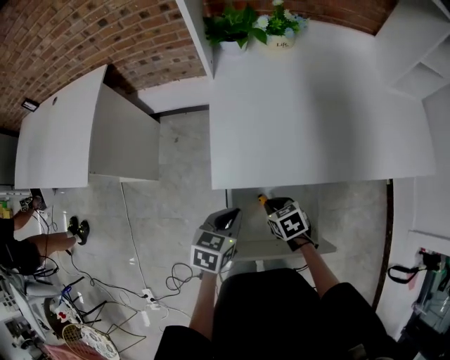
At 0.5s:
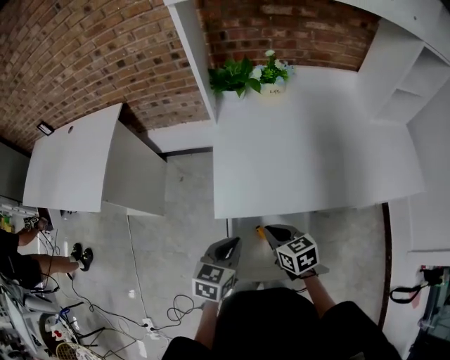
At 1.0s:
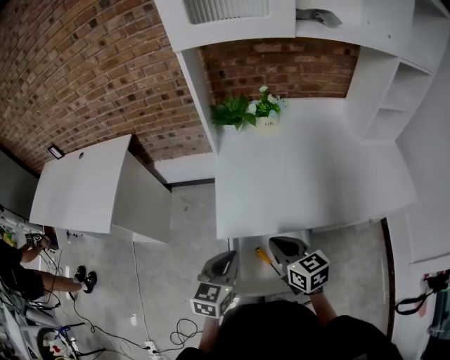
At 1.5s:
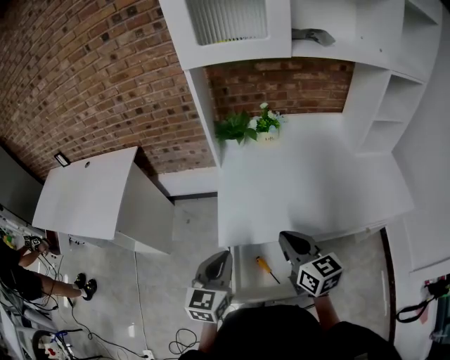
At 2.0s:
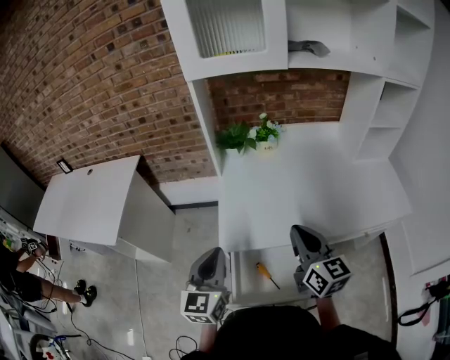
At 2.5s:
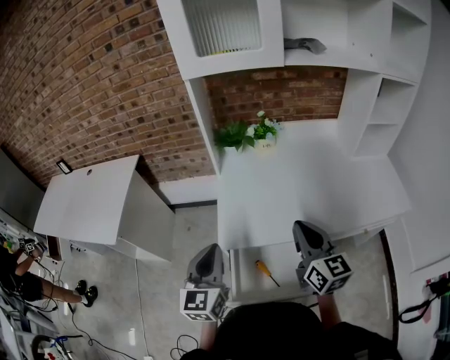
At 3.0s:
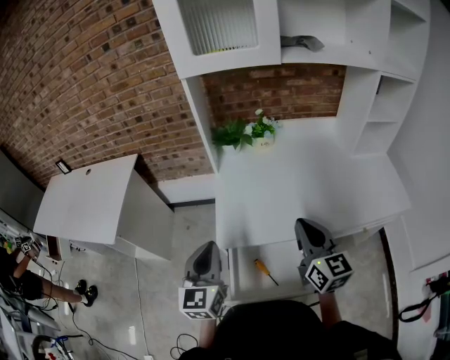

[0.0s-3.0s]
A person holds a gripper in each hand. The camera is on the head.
0.0s to 1.5s: The left gripper travels upward by some 20 cm, and swivels about 30 degrees. Meanwhile the right gripper is displaced upward by approximately 35 cm, and tips its fingers upward by some 50 degrees.
1.5s to 3.0s: The right gripper moves to the right and upward, about 10 cm. Meanwhile the left gripper travels upward by some 5 cm.

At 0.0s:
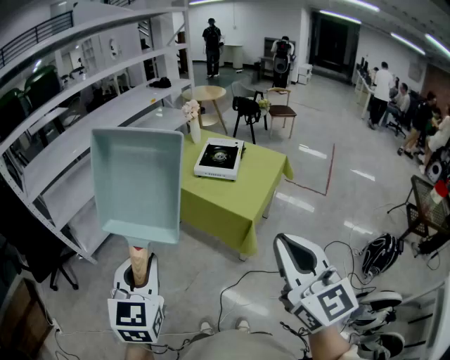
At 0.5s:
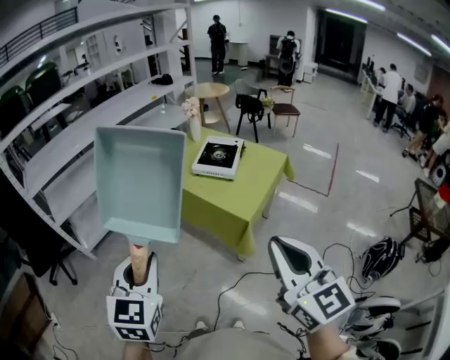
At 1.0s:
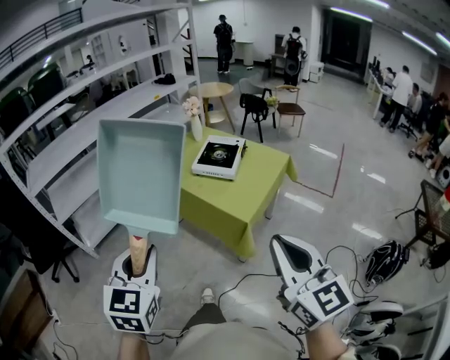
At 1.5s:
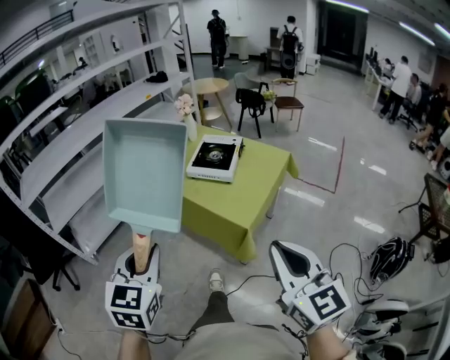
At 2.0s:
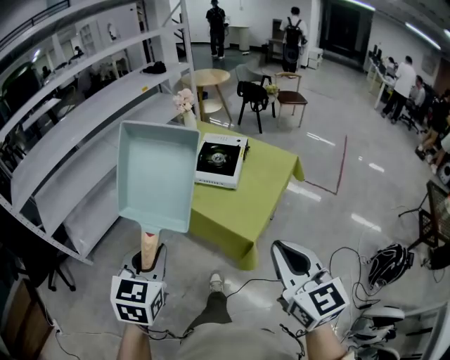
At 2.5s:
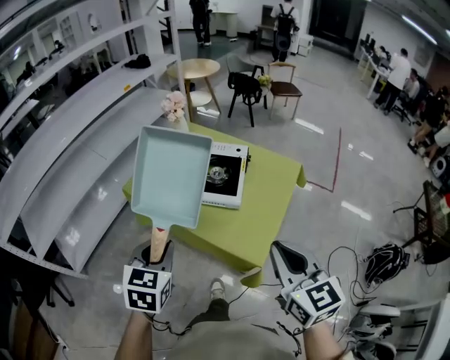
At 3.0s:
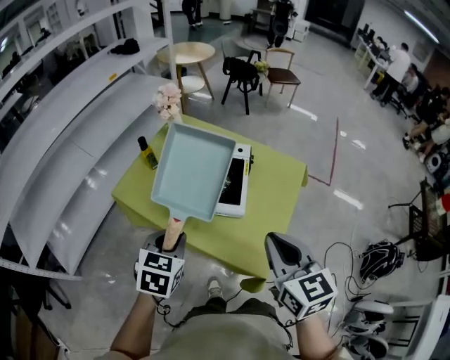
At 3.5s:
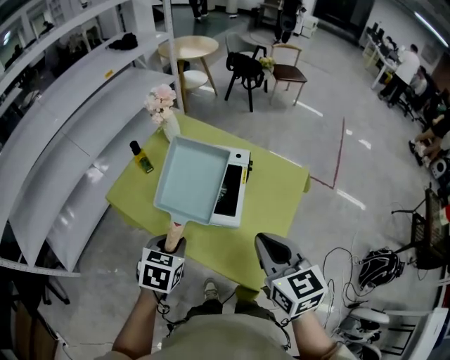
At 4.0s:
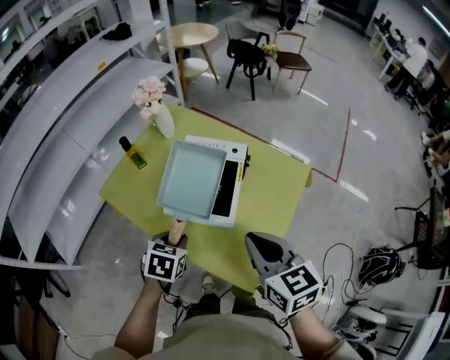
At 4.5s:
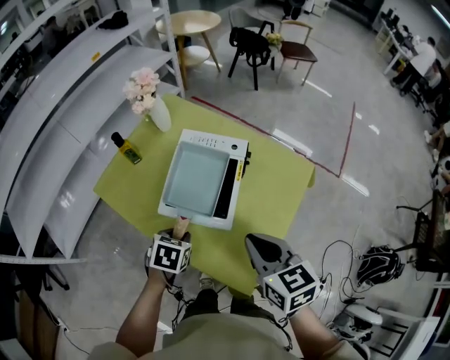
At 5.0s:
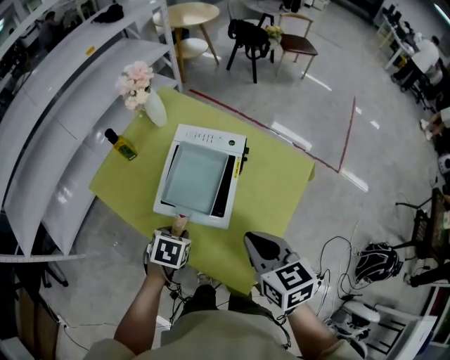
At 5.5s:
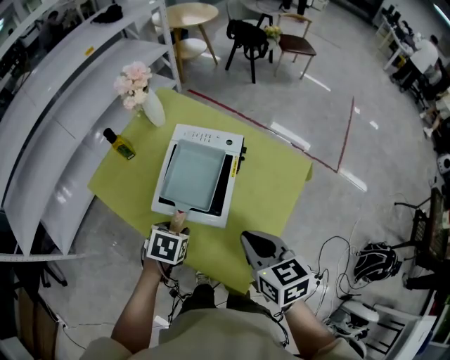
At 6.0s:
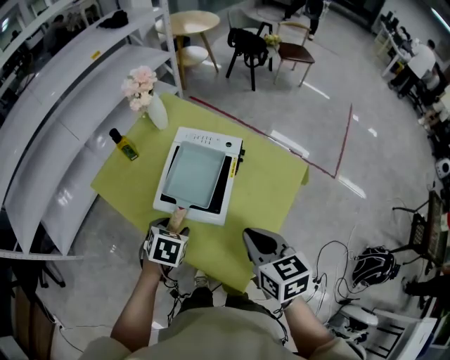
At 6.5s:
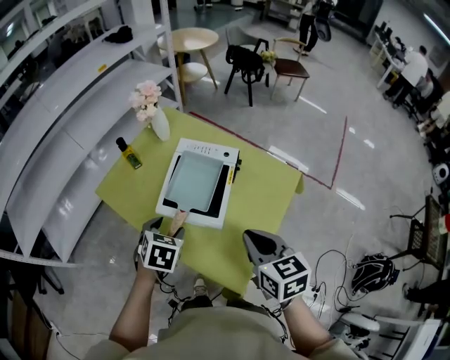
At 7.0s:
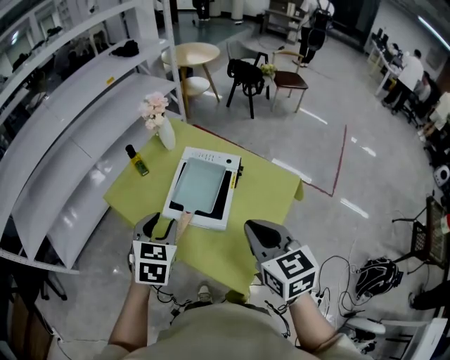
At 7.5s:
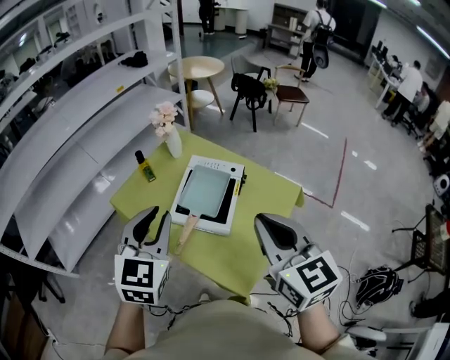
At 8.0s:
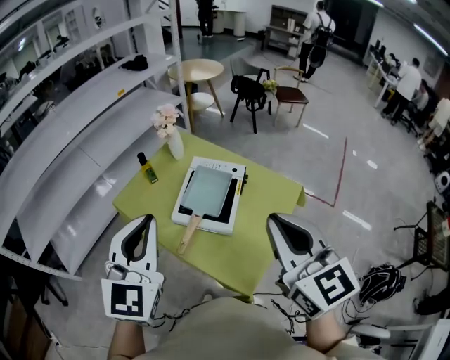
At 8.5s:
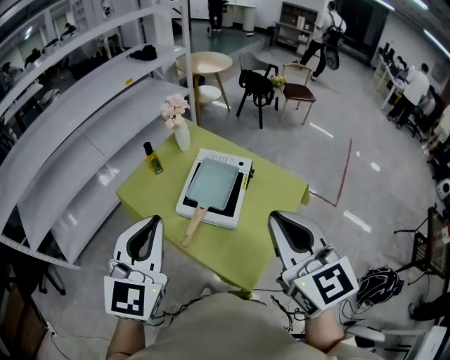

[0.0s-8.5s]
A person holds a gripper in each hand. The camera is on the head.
0.0s to 2.0s: The left gripper goes some 25 cm forward, to the right and downward; the right gripper goes roughly 25 cm forward, downward and to the right.
2.0s to 4.0s: The left gripper travels forward and downward by roughly 40 cm, and tips its fingers downward by approximately 30 degrees; the right gripper heads forward, covering some 35 cm, and swivels roughly 20 degrees.
4.0s to 6.5s: The left gripper travels downward and back again, some 5 cm each way, and opens up.
6.5s to 8.5s: The two grippers go roughly 25 cm upward. The right gripper swivels some 30 degrees. Meanwhile the left gripper tilts its fingers about 50 degrees upward, and closes its fingers.

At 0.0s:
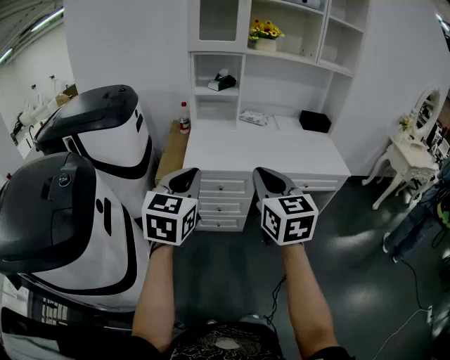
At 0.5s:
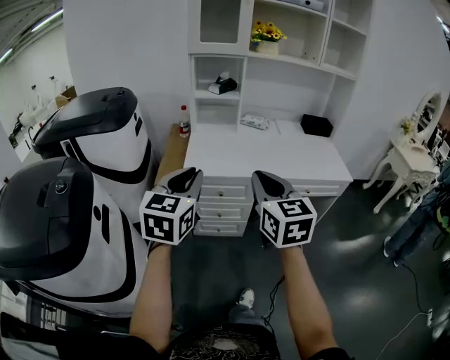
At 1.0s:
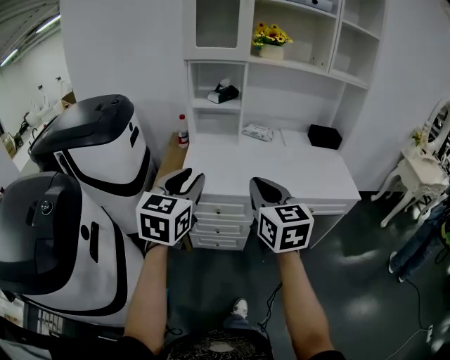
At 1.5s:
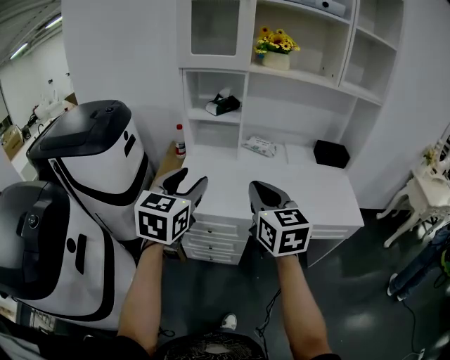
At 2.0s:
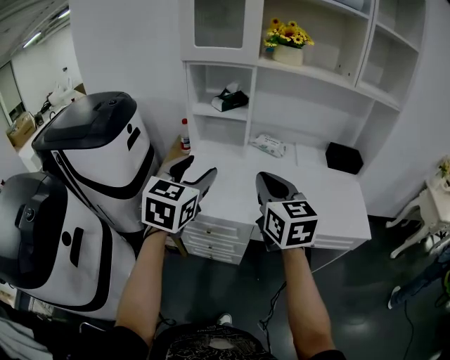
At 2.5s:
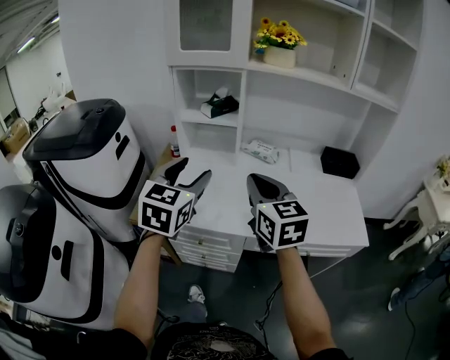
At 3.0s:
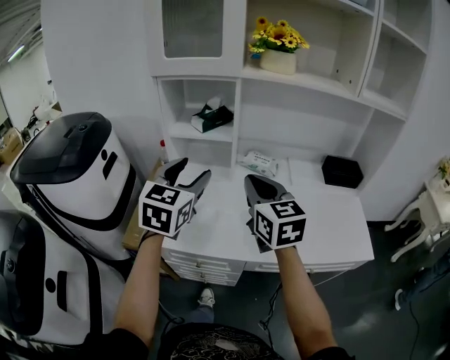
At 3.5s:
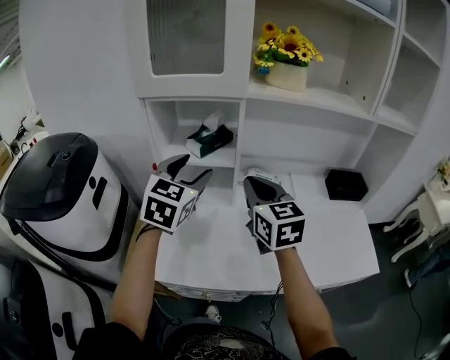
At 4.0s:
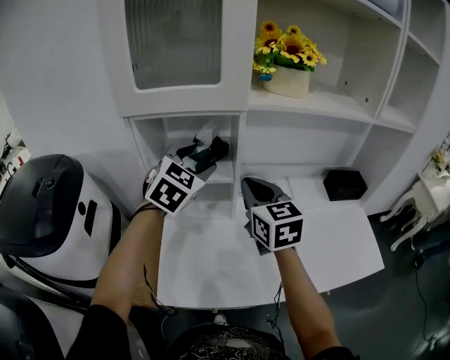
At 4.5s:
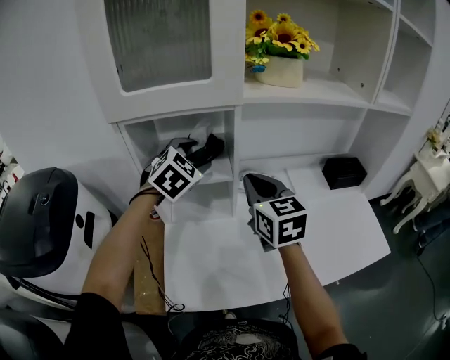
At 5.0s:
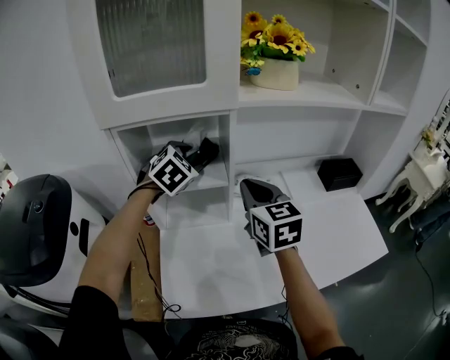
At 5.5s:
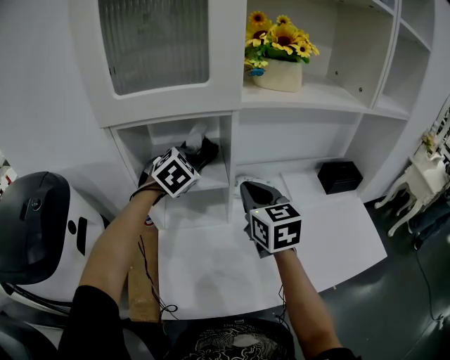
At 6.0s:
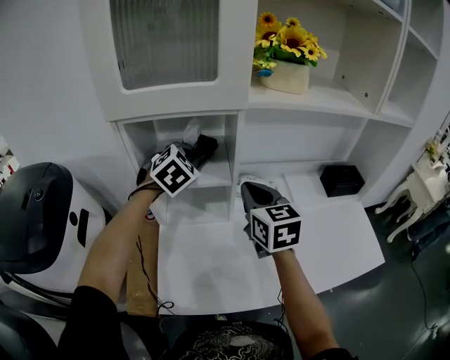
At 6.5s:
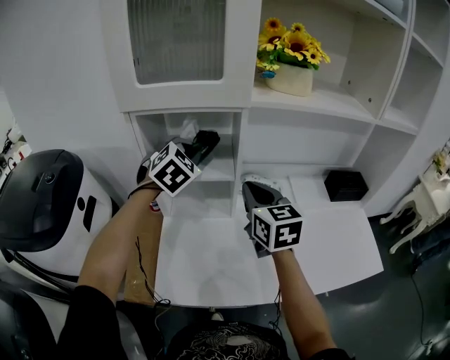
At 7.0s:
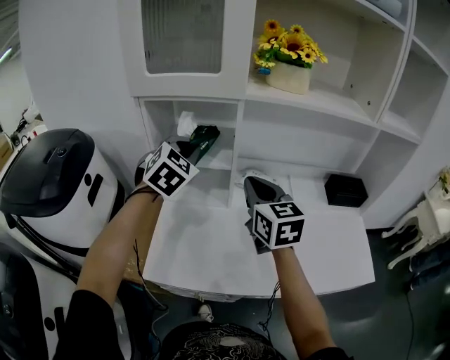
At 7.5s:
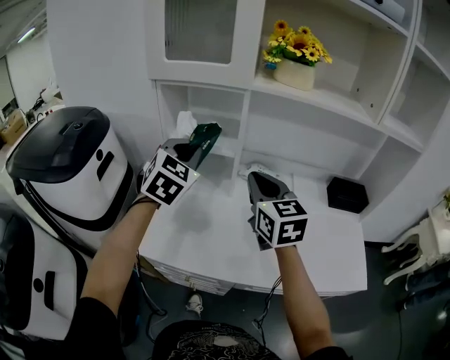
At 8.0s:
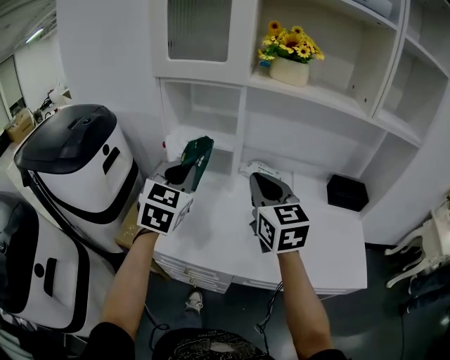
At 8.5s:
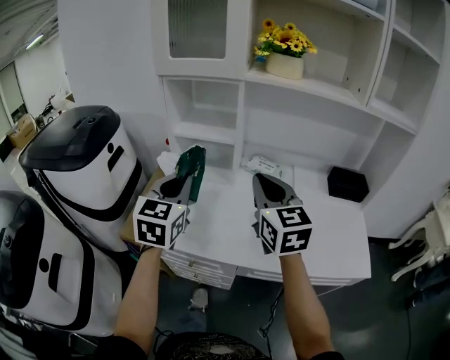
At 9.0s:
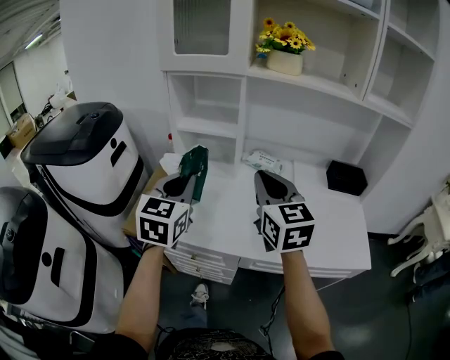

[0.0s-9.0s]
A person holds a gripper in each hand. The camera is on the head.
0.0s to 2.0s: The two grippers go some 30 cm forward. The left gripper opens its fingers.
2.0s to 4.5s: The two grippers go some 40 cm forward. The left gripper rotates about 40 degrees.
4.5s to 7.0s: The right gripper moves about 5 cm, while the left gripper goes some 5 cm backward, and closes up.
7.0s to 9.0s: The right gripper is displaced backward by roughly 15 cm; the left gripper heads backward, covering about 25 cm, and rotates about 40 degrees.

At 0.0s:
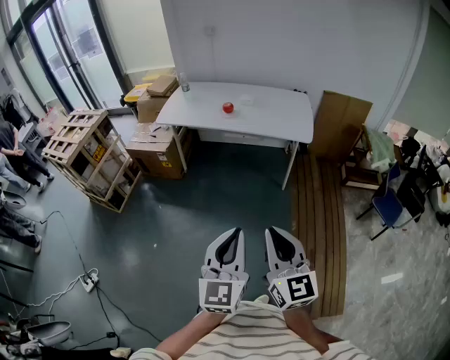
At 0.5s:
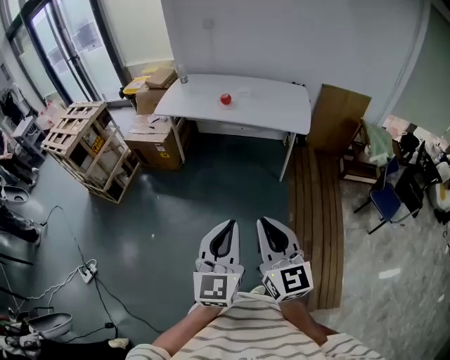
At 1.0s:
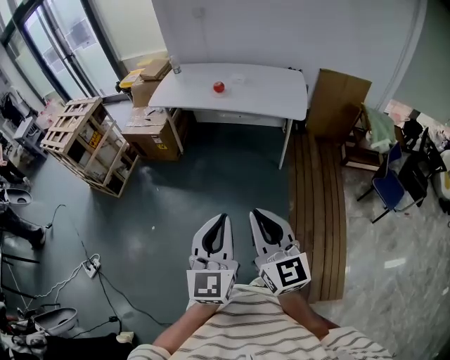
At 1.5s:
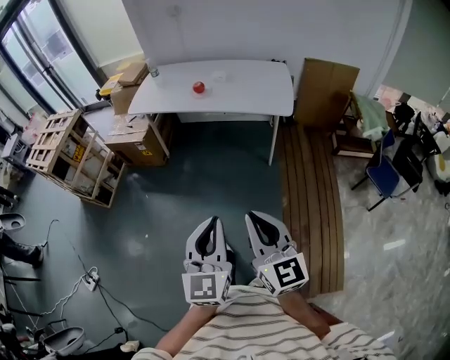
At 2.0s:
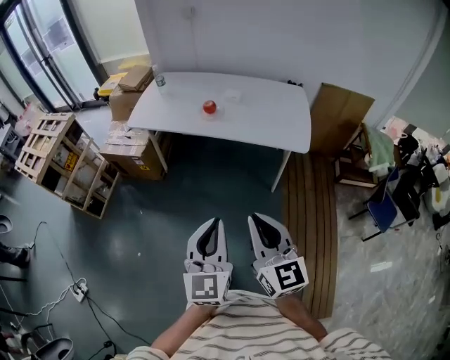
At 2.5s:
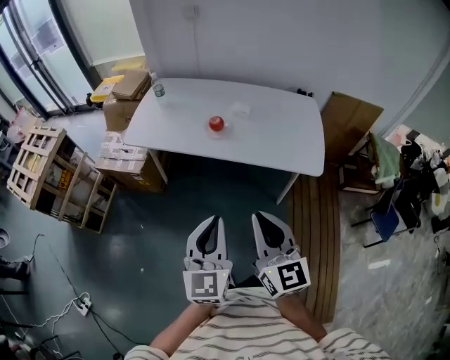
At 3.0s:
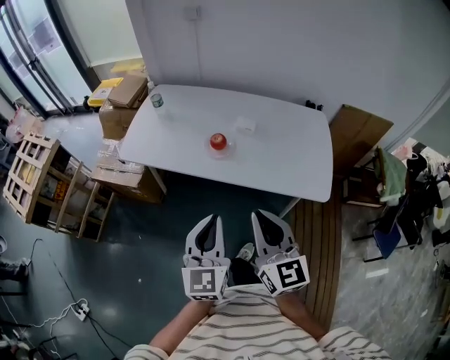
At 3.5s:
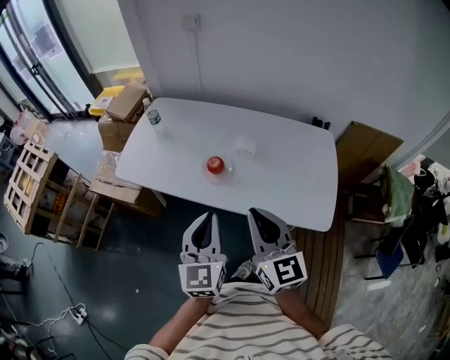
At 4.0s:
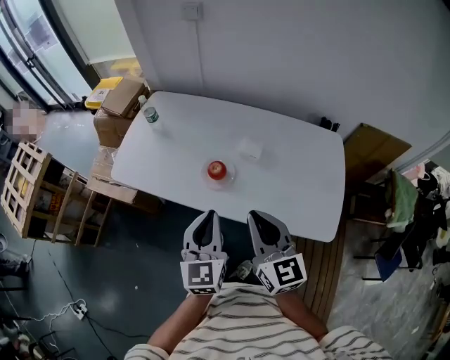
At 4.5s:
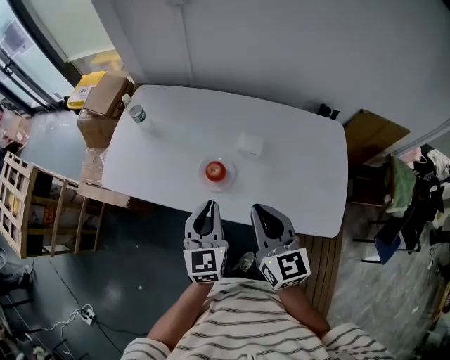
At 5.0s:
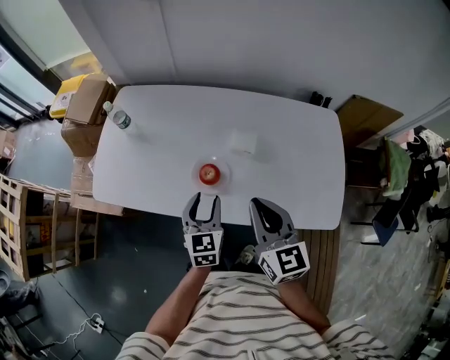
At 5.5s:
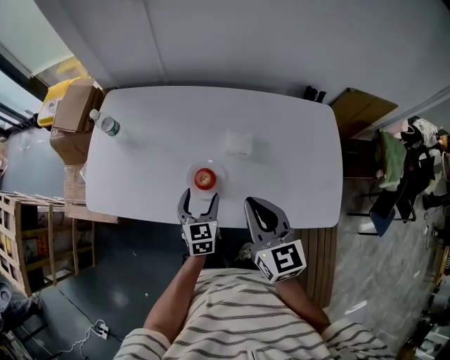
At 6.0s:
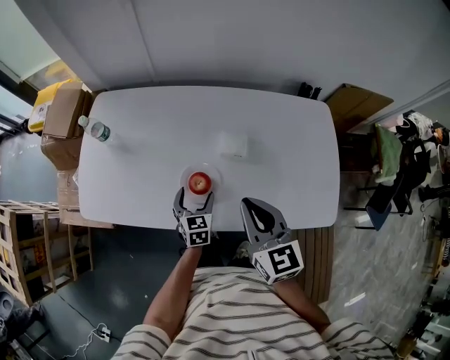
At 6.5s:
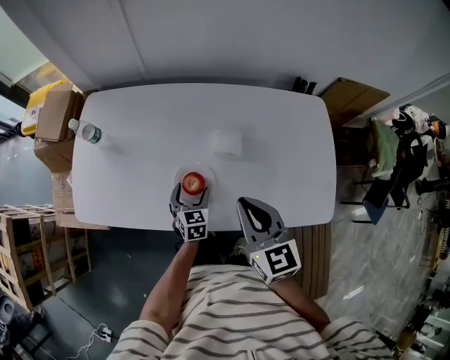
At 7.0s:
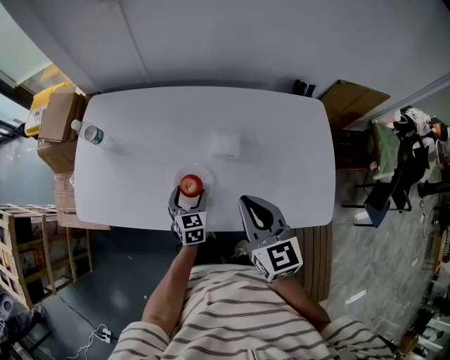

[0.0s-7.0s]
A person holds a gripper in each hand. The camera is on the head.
0.0s to 2.0s: Both grippers move forward, some 25 cm.
2.0s to 3.5s: The pair of grippers is taken forward, some 40 cm.
3.5s to 5.0s: The two grippers go roughly 25 cm forward and downward. The left gripper swivels approximately 20 degrees, and opens up.
5.0s to 7.0s: The left gripper heads downward and forward, covering approximately 15 cm, and opens up, while the right gripper moves roughly 5 cm.
